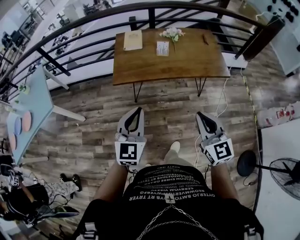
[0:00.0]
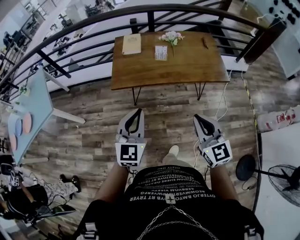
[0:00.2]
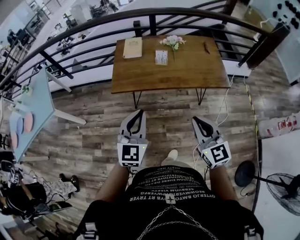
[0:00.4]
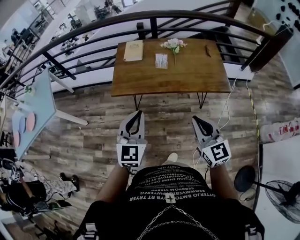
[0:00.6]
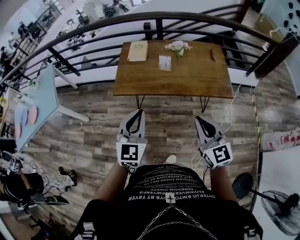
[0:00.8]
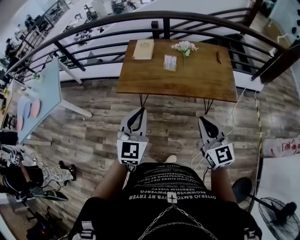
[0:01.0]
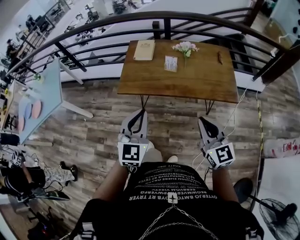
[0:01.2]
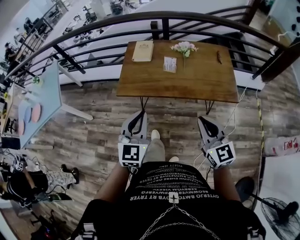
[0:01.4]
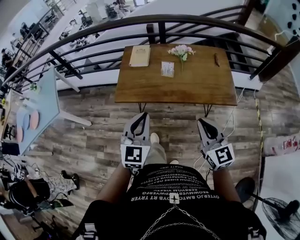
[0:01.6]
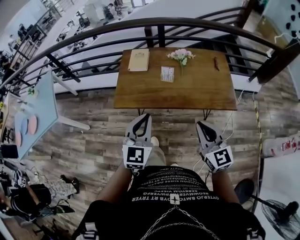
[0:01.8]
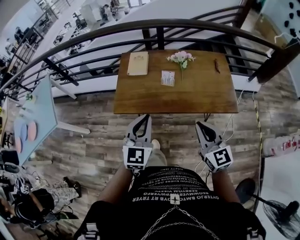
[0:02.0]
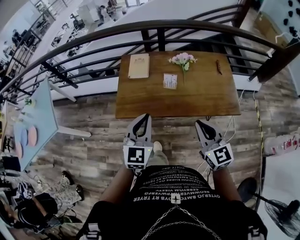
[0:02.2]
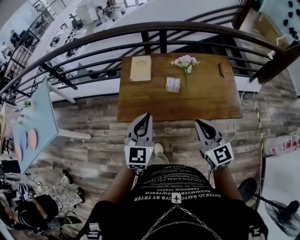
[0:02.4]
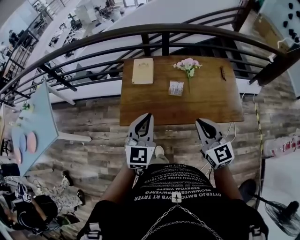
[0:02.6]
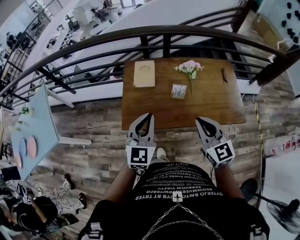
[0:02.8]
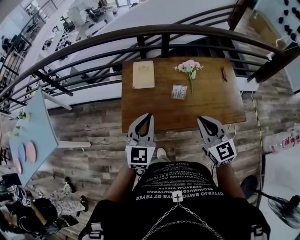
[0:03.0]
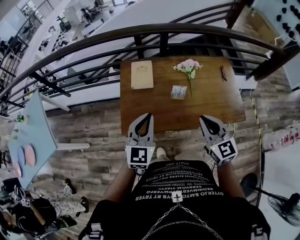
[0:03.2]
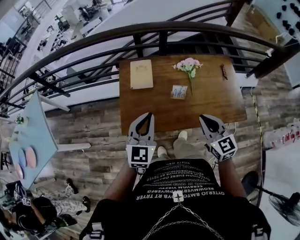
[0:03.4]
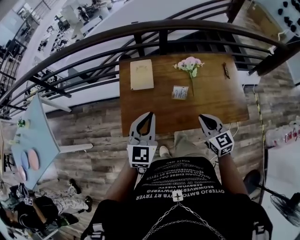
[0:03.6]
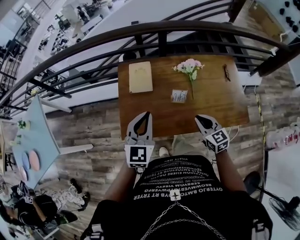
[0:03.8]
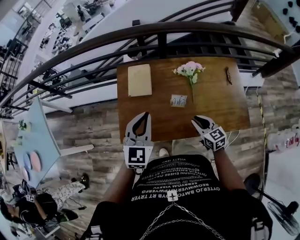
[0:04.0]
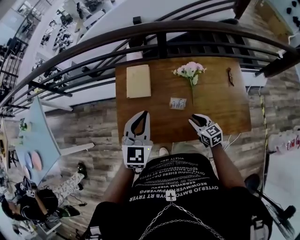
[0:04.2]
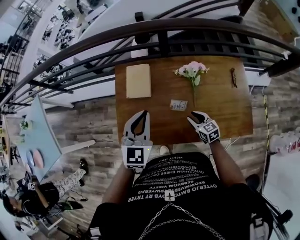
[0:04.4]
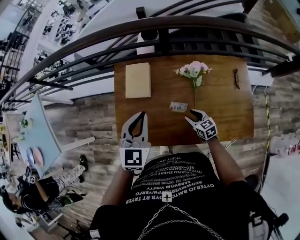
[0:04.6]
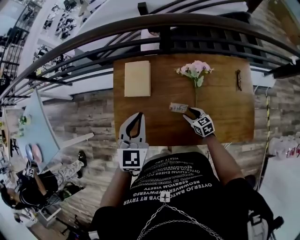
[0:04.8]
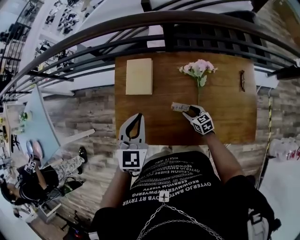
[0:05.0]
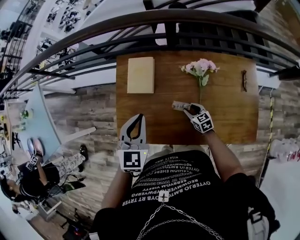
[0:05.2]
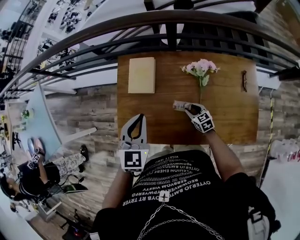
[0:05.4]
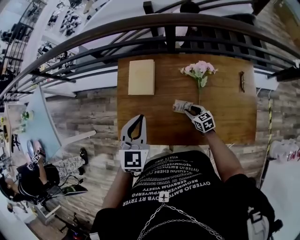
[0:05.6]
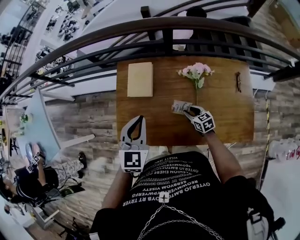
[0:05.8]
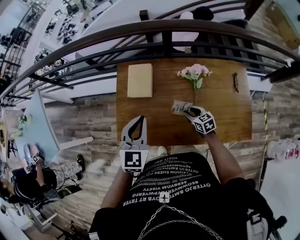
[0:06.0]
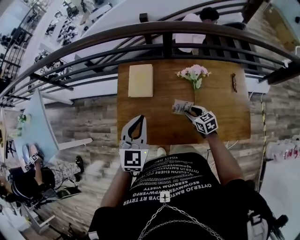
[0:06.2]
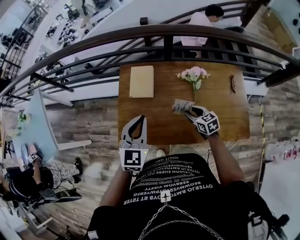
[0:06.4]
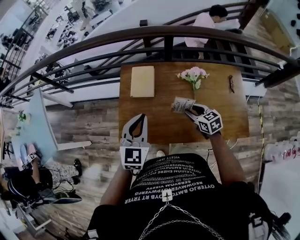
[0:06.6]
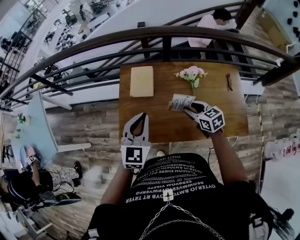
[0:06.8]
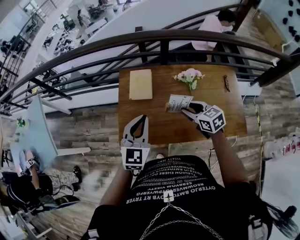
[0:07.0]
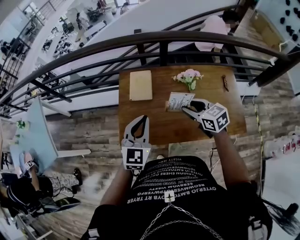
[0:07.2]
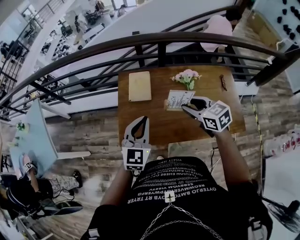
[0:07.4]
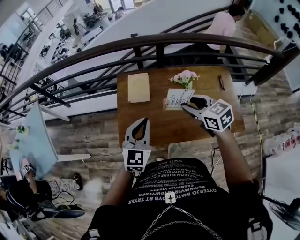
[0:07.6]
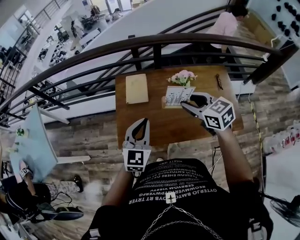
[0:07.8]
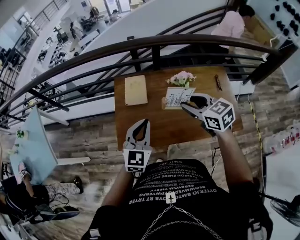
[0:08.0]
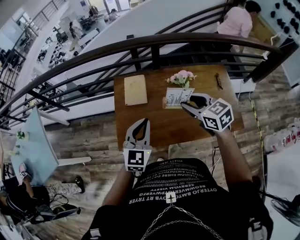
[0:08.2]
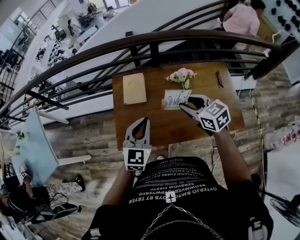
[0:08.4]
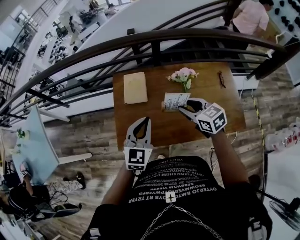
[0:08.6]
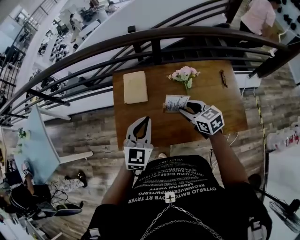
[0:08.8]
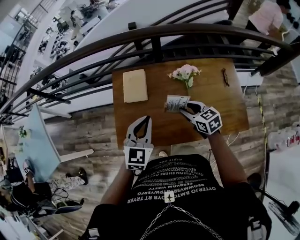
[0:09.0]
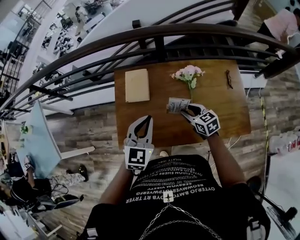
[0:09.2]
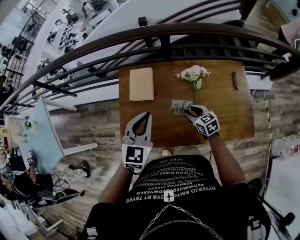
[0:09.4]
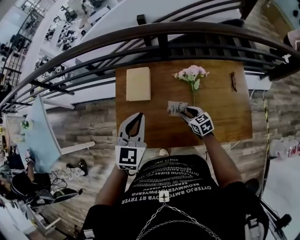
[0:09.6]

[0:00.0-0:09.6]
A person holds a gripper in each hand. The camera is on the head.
0:00.0 to 0:01.6: The grippers both shift forward and to the right by some 15 cm.
0:01.6 to 0:03.2: The left gripper heads forward, covering some 25 cm; the right gripper shifts approximately 25 cm forward and to the left.
0:03.2 to 0:04.8: The right gripper goes approximately 40 cm downward and forward, swivels roughly 40 degrees, and opens; the left gripper travels forward by some 20 cm.
0:04.8 to 0:06.4: The left gripper heads backward, covering approximately 5 cm. Meanwhile the right gripper is displaced upward by some 10 cm.
0:06.4 to 0:08.0: The left gripper travels backward by some 5 cm, while the right gripper goes roughly 25 cm upward.
0:08.0 to 0:09.6: The right gripper moves downward, some 30 cm; the left gripper shifts about 10 cm forward.

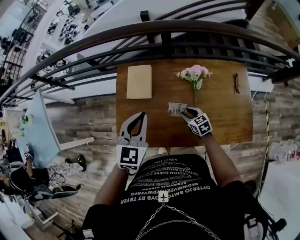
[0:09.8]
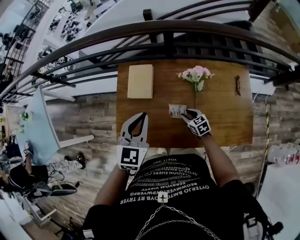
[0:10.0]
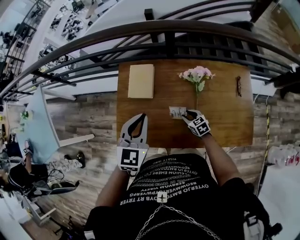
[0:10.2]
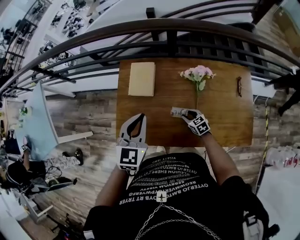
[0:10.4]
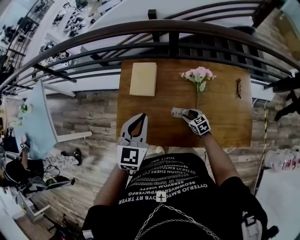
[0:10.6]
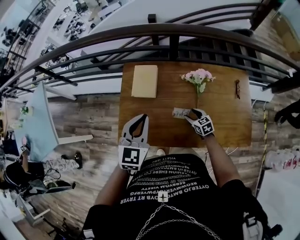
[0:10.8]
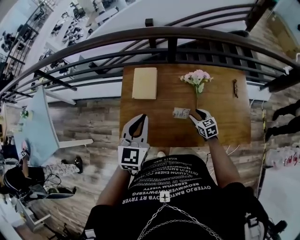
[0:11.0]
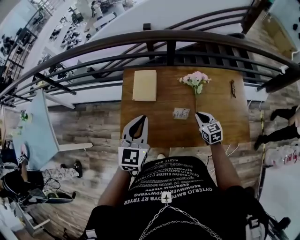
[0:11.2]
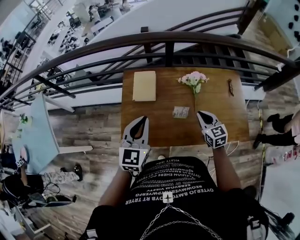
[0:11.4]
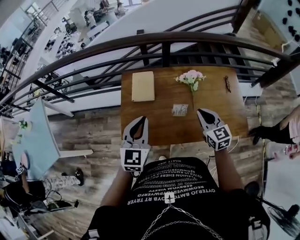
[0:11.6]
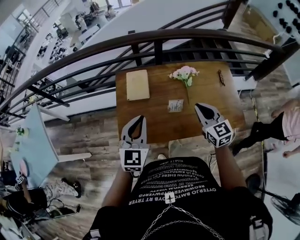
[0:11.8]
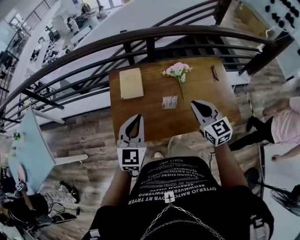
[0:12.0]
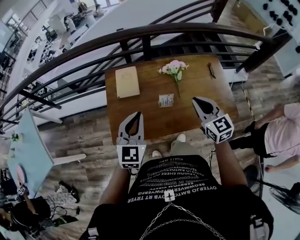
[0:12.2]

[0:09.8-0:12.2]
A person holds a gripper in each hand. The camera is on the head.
0:09.8 to 0:11.0: The left gripper ends up roughly 5 cm from where it was; the right gripper travels downward and back again, approximately 5 cm each way.
0:11.0 to 0:12.2: The right gripper heads upward, covering roughly 25 cm, rotates about 30 degrees, and closes its fingers, while the left gripper goes about 5 cm backward.

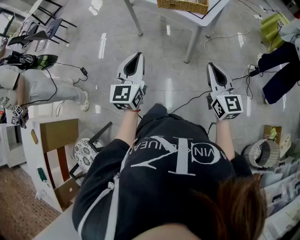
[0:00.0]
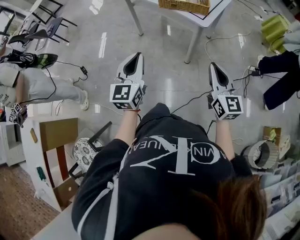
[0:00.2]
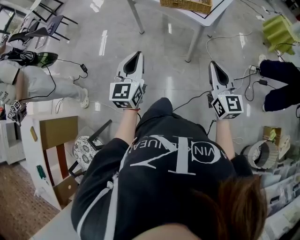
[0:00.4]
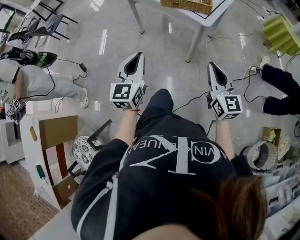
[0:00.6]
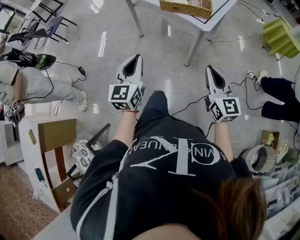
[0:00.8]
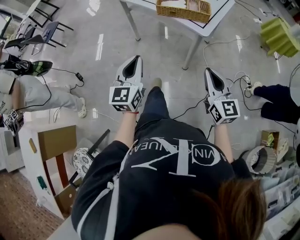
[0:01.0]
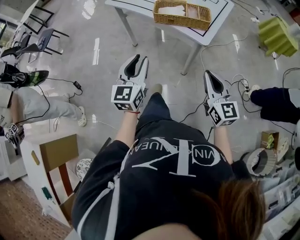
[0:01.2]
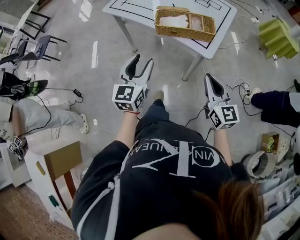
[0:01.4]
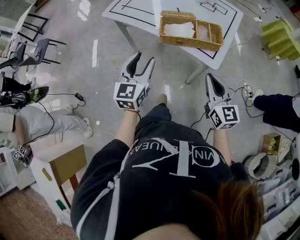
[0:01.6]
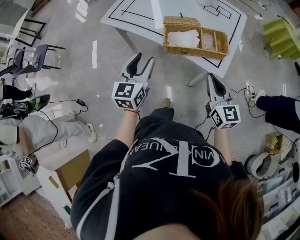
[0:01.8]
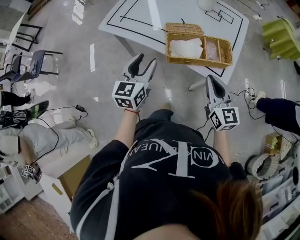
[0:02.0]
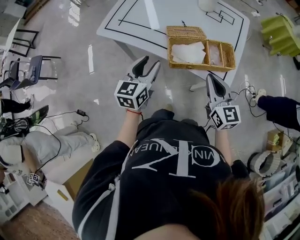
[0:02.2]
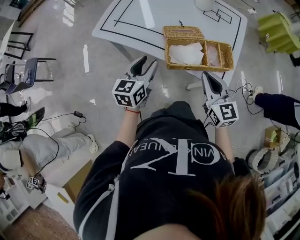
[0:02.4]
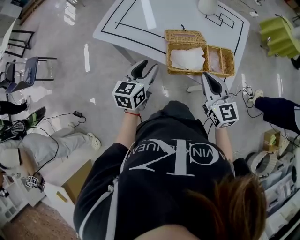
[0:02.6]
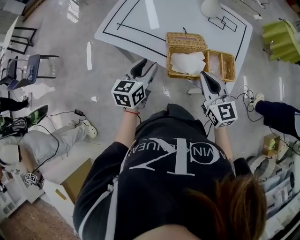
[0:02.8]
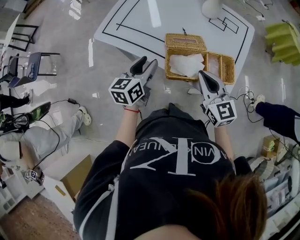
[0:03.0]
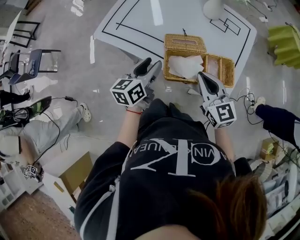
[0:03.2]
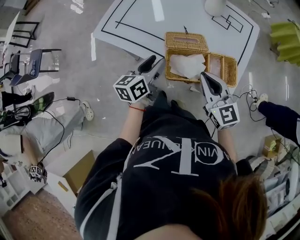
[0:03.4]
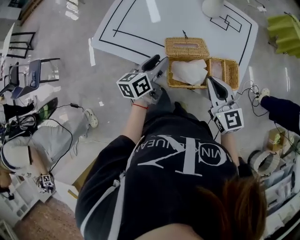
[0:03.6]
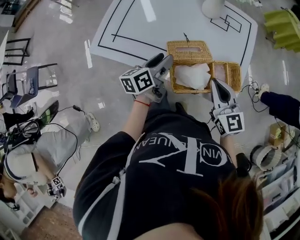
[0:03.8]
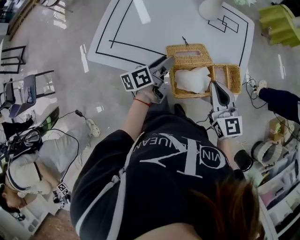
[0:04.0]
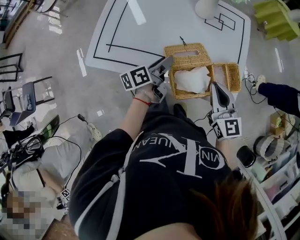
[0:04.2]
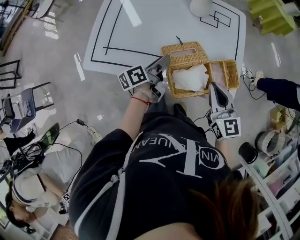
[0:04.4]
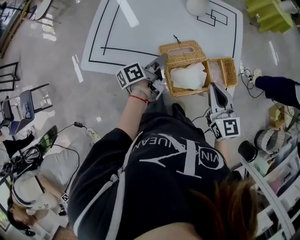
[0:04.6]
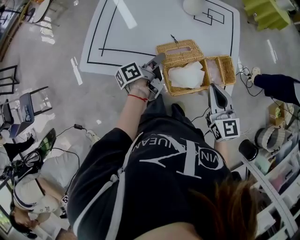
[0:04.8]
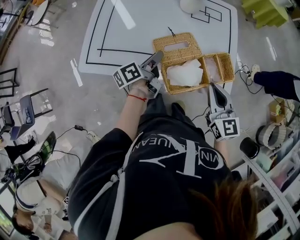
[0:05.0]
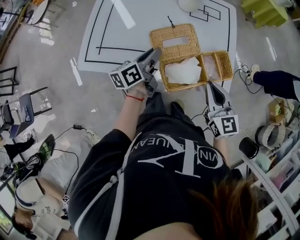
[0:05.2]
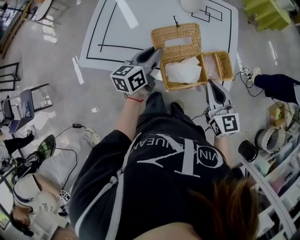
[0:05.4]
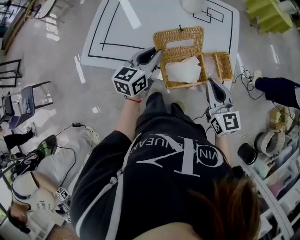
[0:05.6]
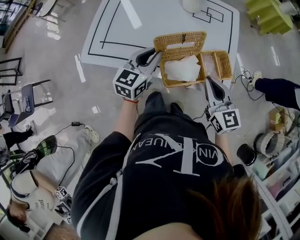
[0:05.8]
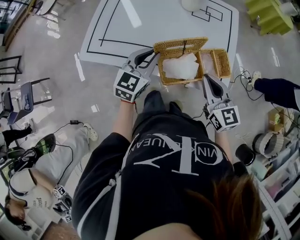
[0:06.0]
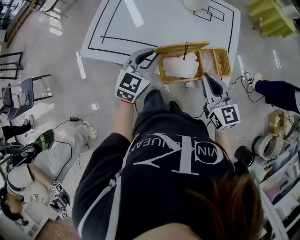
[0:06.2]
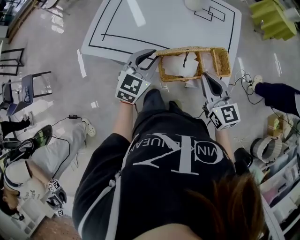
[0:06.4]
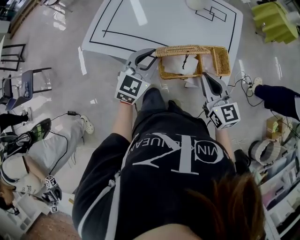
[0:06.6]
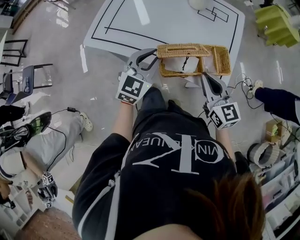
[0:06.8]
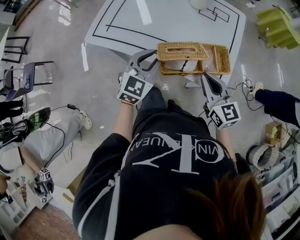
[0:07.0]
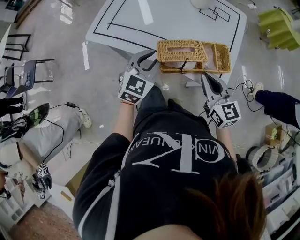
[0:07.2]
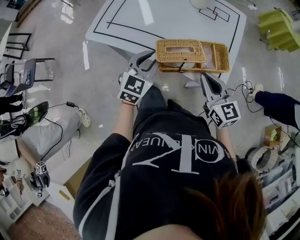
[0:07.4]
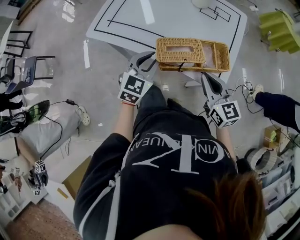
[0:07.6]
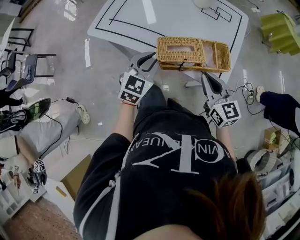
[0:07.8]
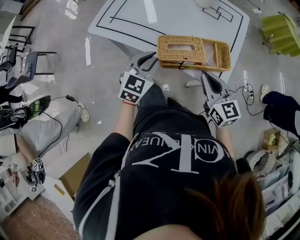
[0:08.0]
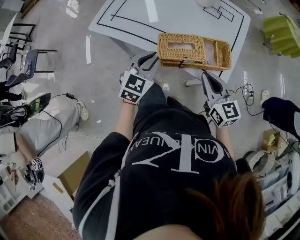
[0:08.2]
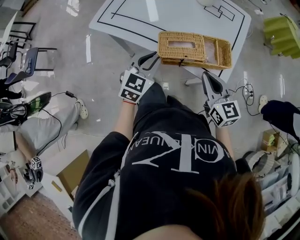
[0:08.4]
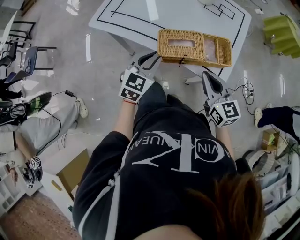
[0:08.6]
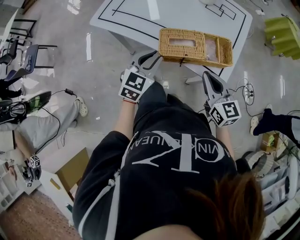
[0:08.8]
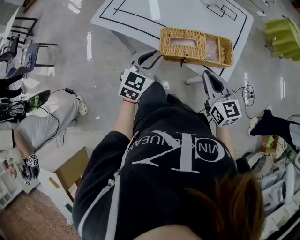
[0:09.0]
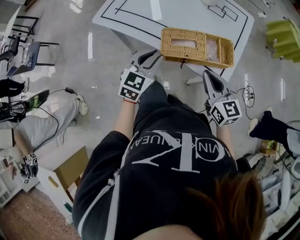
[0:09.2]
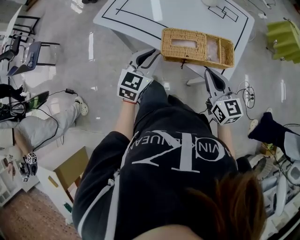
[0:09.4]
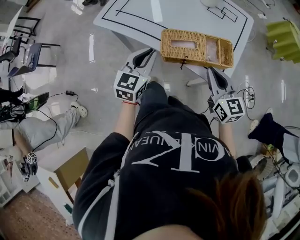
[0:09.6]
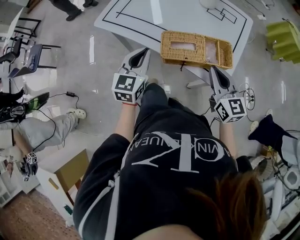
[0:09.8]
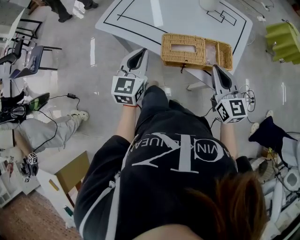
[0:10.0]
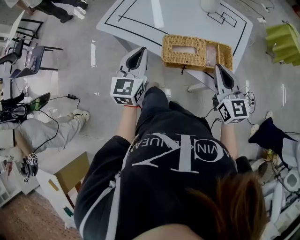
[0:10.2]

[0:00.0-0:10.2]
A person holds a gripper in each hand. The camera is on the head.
0:00.0 to 0:01.4: The two grippers go roughly 20 cm forward. The left gripper opens its fingers.
0:01.4 to 0:03.0: Both grippers travel together forward, roughly 30 cm. The left gripper changes its angle by roughly 30 degrees.
0:03.0 to 0:04.4: The right gripper rotates some 20 degrees. The left gripper is displaced forward and downward by some 15 cm, and twists some 40 degrees counterclockwise, seen from behind.
0:04.4 to 0:05.8: The left gripper goes roughly 10 cm upward, twists about 60 degrees clockwise, seen from behind, and closes.
0:05.8 to 0:07.2: The left gripper goes some 10 cm backward, and changes its angle by some 20 degrees.
0:07.2 to 0:08.8: The left gripper shifts by about 5 cm.
0:08.8 to 0:10.2: The left gripper moves upward and to the left, about 10 cm, and rotates approximately 30 degrees. The right gripper travels upward by some 5 cm.

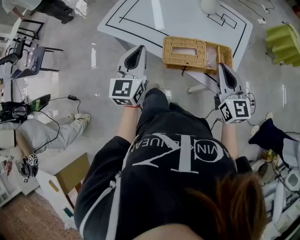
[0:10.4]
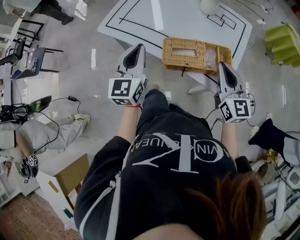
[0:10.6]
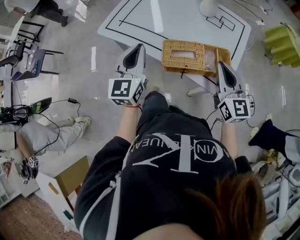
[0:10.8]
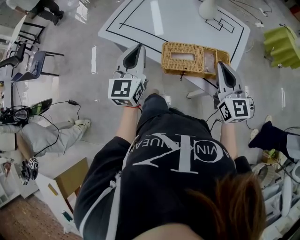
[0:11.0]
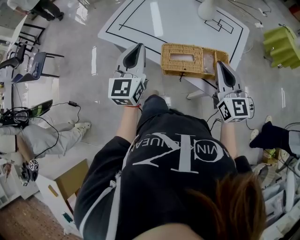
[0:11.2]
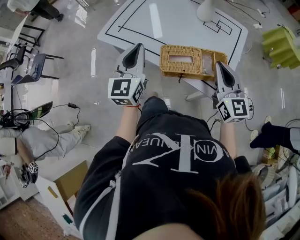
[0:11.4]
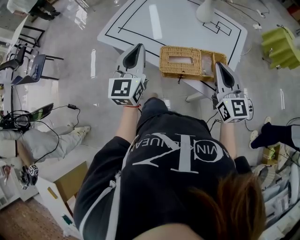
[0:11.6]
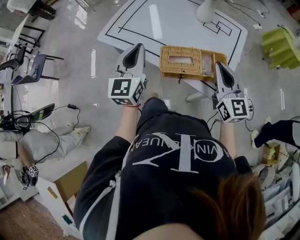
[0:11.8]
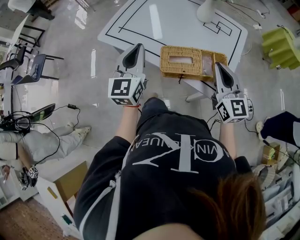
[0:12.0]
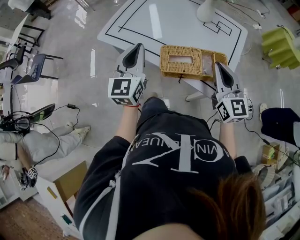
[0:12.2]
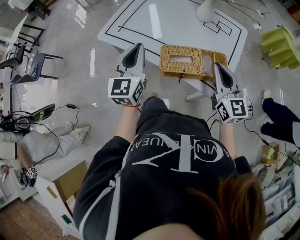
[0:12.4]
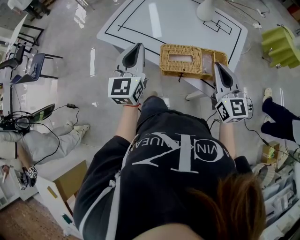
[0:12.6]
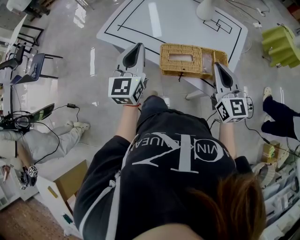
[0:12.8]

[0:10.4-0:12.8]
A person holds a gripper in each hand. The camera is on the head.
0:10.4 to 0:12.8: The grippers stay close to where they were, moving slightly.
